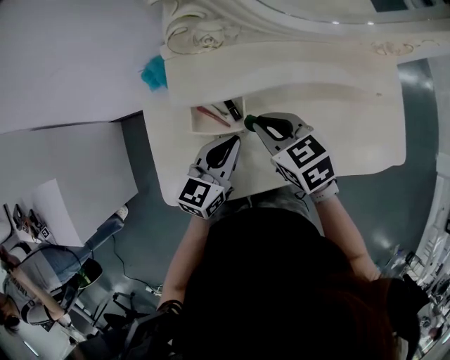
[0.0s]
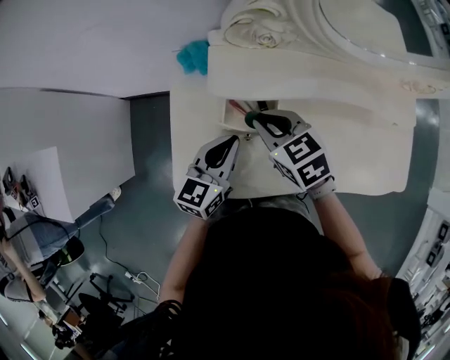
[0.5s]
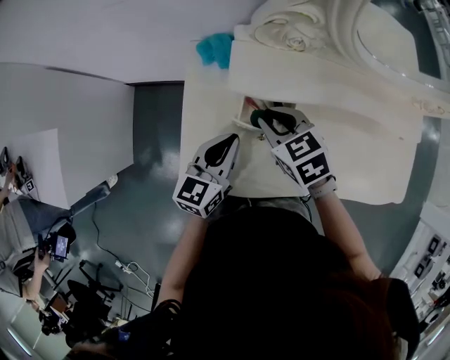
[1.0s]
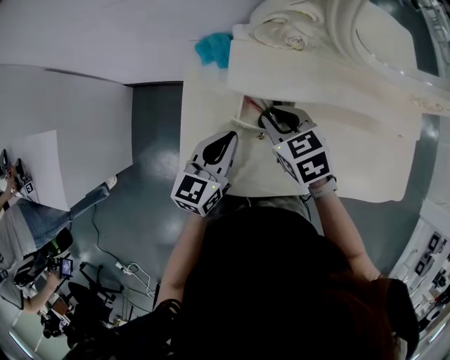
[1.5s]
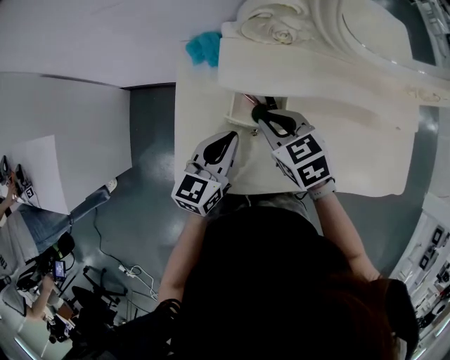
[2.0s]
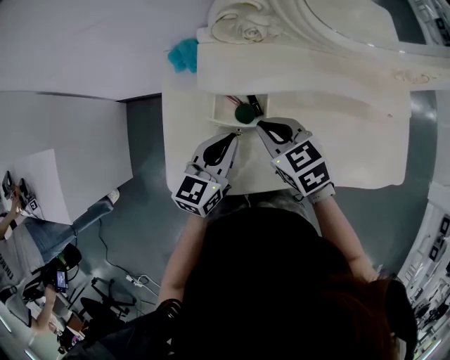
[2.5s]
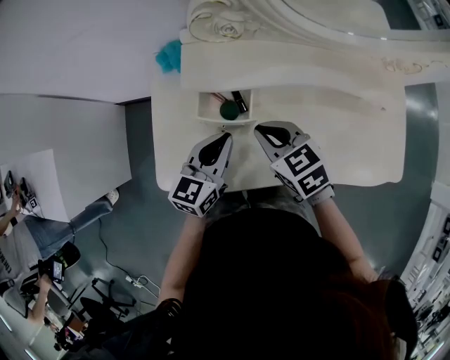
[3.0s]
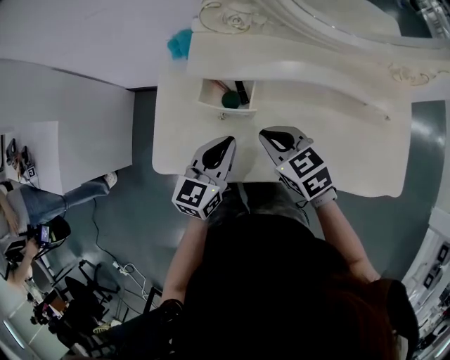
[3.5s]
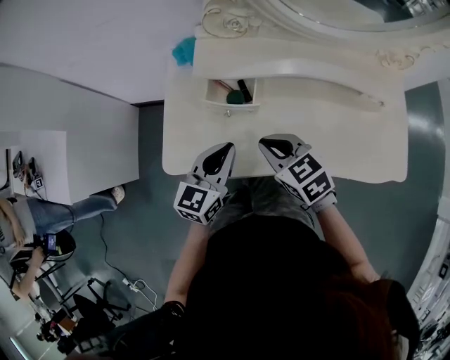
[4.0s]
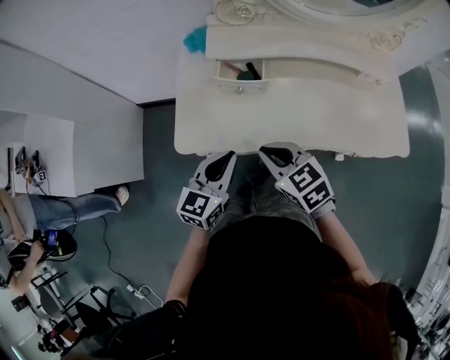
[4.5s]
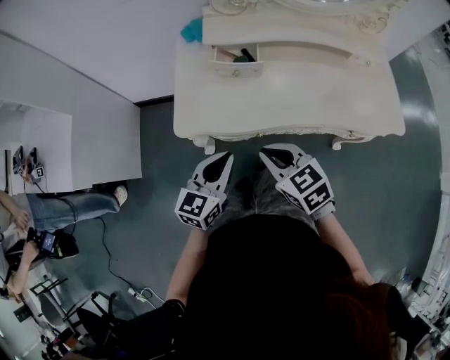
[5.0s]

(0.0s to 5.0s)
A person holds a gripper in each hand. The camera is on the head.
0.0s - 2.5s: The grippers both shift to the left by some 5 cm.
2.5s - 5.0s: Both grippers move backward, approximately 25 cm.

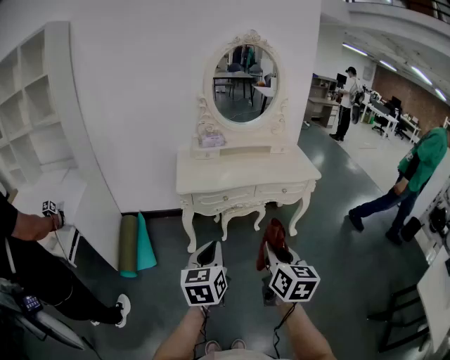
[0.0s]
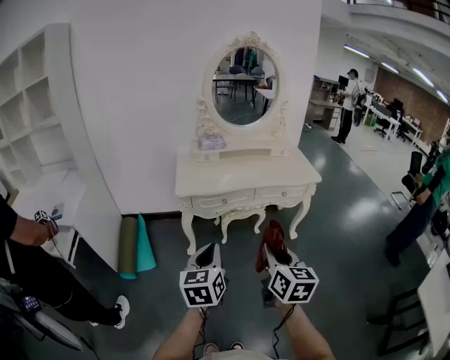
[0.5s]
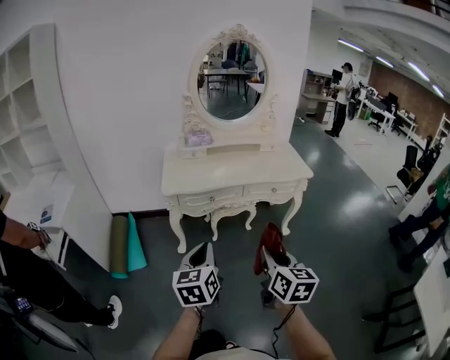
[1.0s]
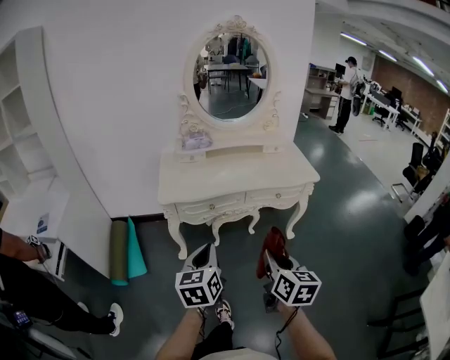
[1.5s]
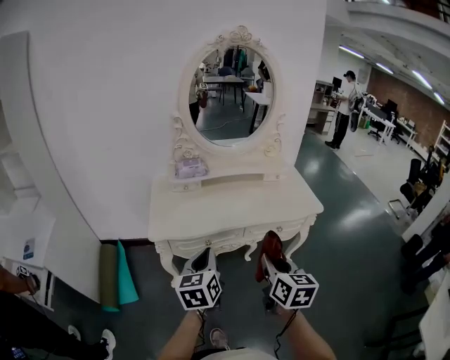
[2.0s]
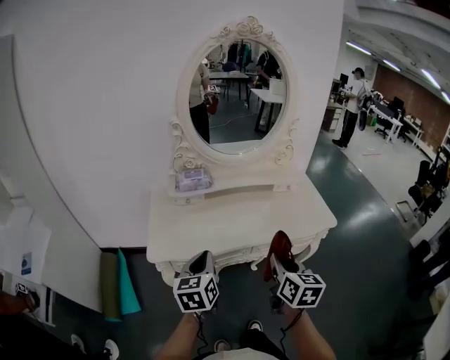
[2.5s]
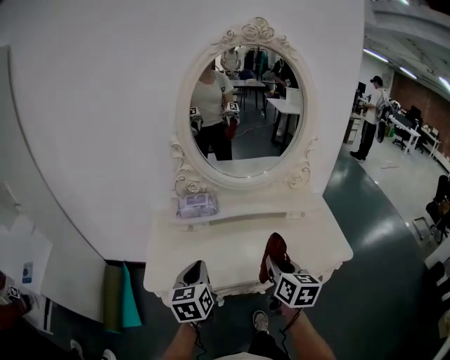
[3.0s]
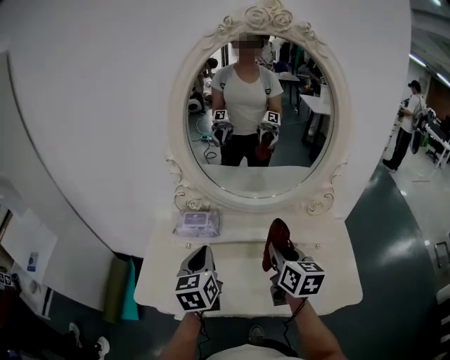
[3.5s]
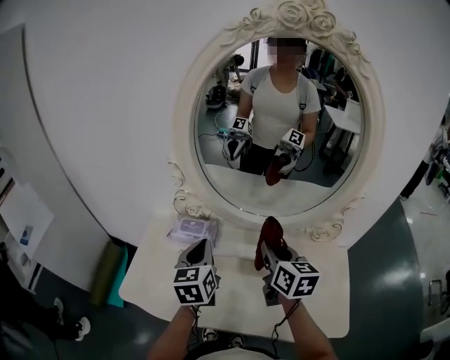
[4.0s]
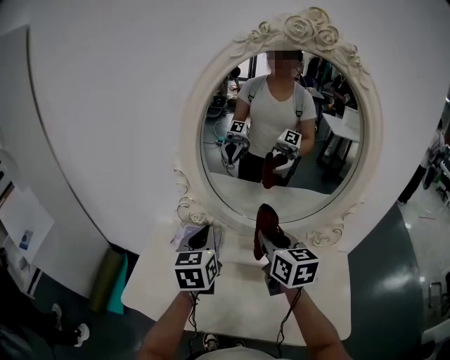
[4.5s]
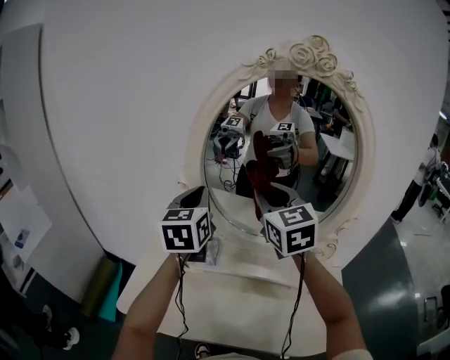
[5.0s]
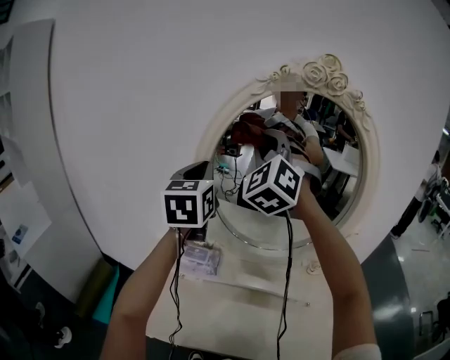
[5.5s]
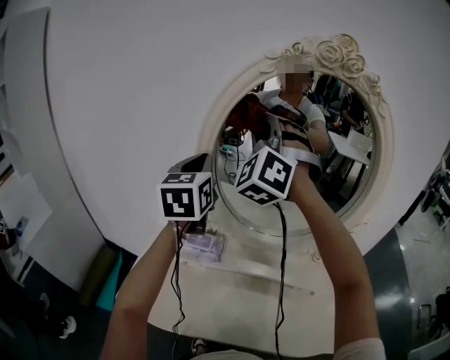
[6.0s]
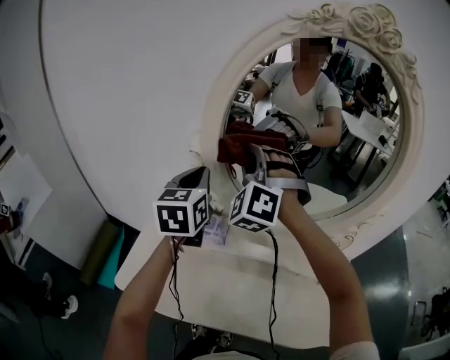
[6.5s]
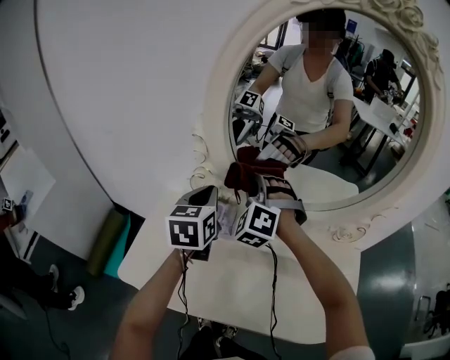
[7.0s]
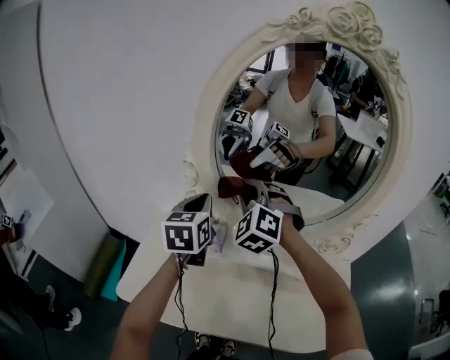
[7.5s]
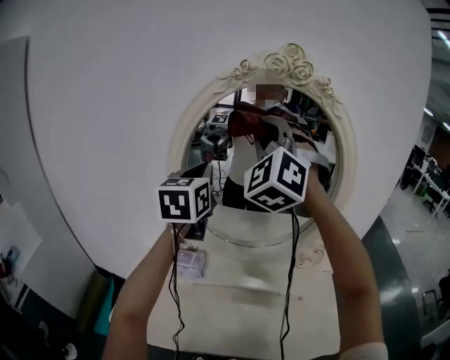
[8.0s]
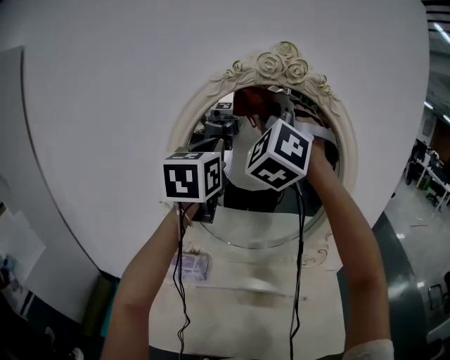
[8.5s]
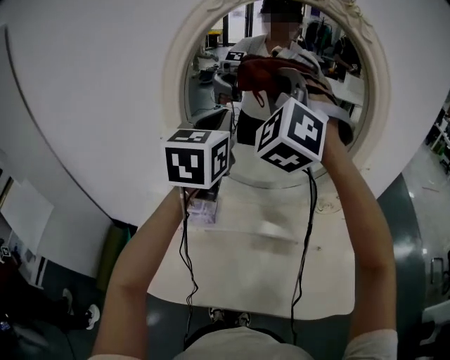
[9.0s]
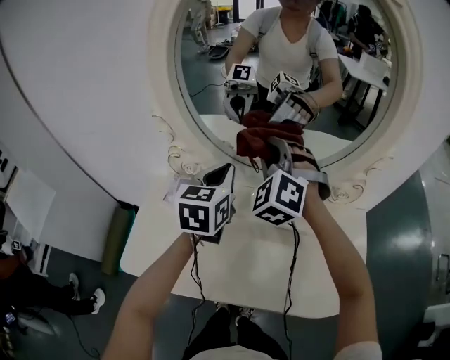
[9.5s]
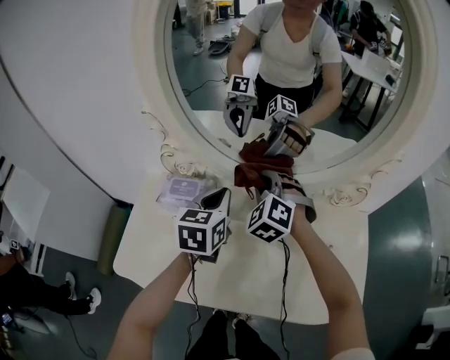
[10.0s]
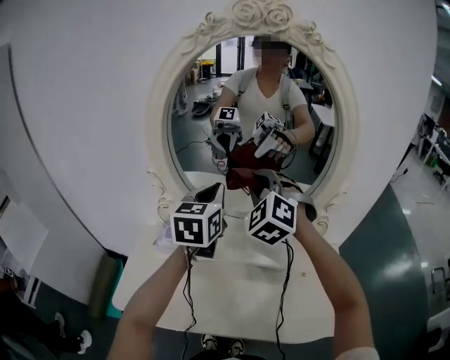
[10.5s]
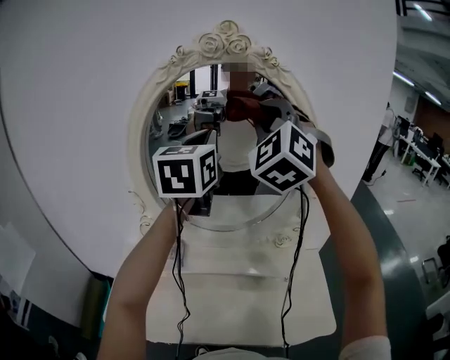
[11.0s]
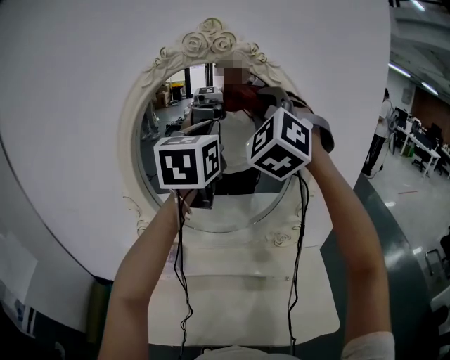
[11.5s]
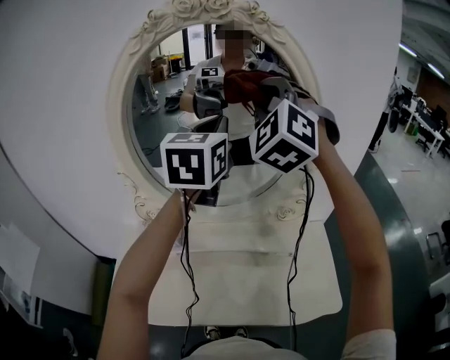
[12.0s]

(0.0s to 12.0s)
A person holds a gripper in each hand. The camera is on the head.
0.0s - 2.0s: The grippers both shift forward by approximately 25 cm.
2.0s - 4.0s: Both grippers are carried approximately 50 cm. The left gripper rotates some 20 degrees. The right gripper swivels roughly 30 degrees.
4.0s - 6.0s: The right gripper moves upward, forward and to the left, approximately 40 cm, and twists approximately 90 degrees counterclockwise, seen from behind. Meanwhile the left gripper travels upward and forward by roughly 25 cm.
6.0s - 8.0s: The grippers both shift to the right by approximately 10 cm. The right gripper reaches some 30 cm downward, then returns, while the left gripper moves some 20 cm downward and comes back.
8.0s - 10.0s: Both grippers travel together downward, about 40 cm. The right gripper tilts its fingers roughly 40 degrees downward. The left gripper swivels about 30 degrees.
10.0s - 12.0s: Both grippers travel together upward, approximately 40 cm. The left gripper changes its angle by some 30 degrees. The right gripper angles its fingers upward, by roughly 30 degrees.

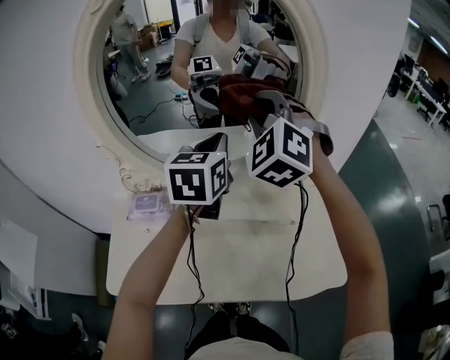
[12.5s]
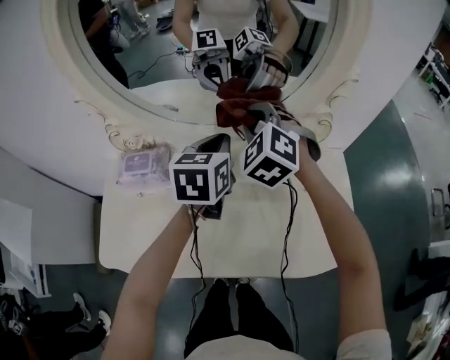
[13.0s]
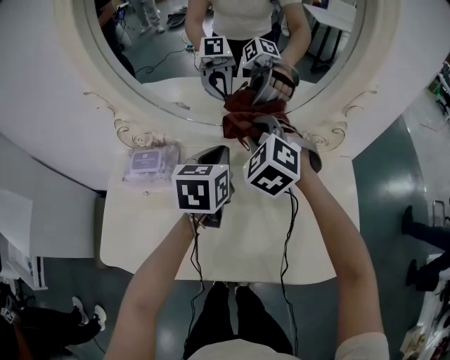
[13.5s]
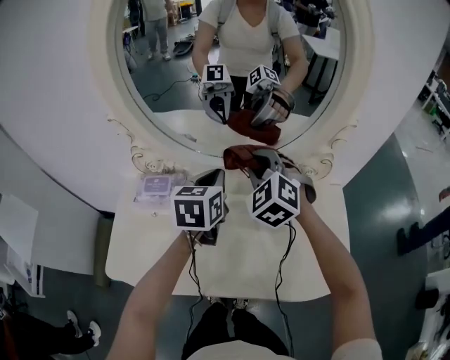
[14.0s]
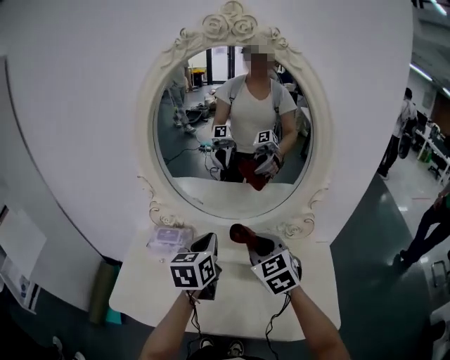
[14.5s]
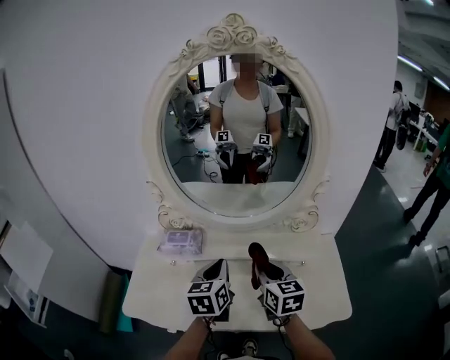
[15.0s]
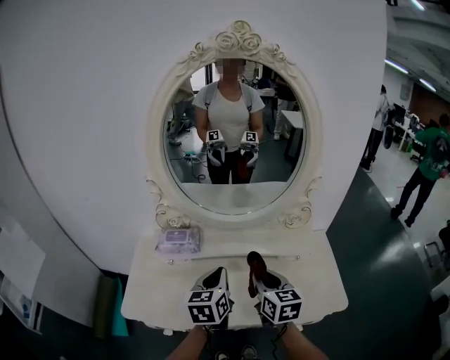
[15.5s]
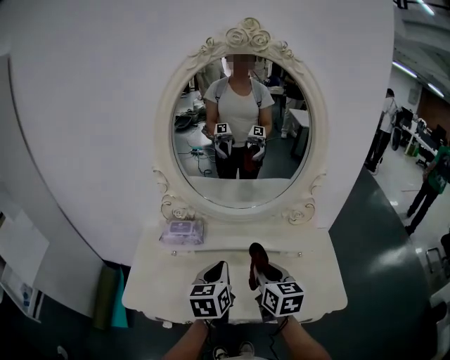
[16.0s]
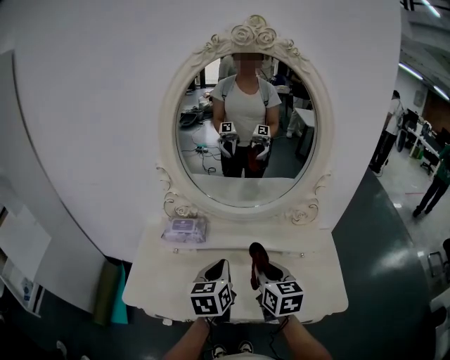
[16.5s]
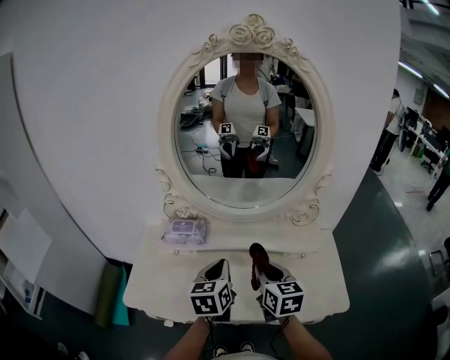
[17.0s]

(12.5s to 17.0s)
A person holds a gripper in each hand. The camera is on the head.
12.5s - 14.5s: The right gripper travels downward and backward by roughly 20 cm, and swivels approximately 40 degrees. Meanwhile the left gripper goes about 15 cm backward, downward and to the left.
14.5s - 17.0s: The right gripper travels backward by some 10 cm, and rotates about 30 degrees. The left gripper moves backward and downward, about 10 cm.

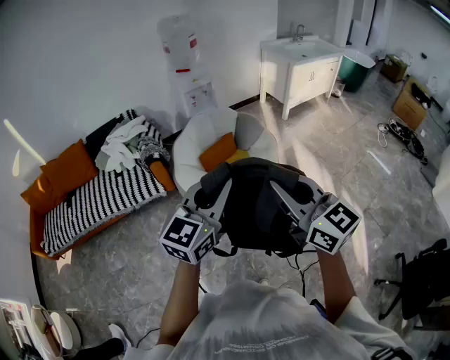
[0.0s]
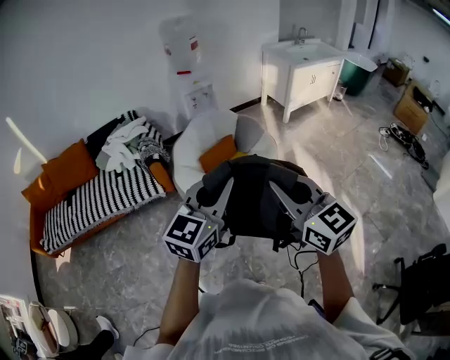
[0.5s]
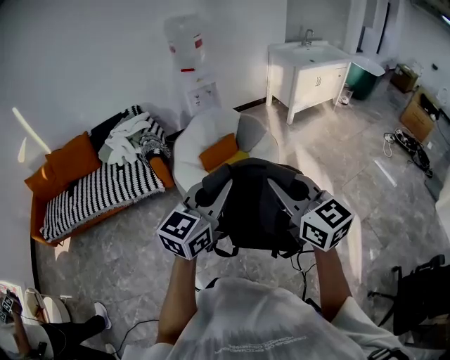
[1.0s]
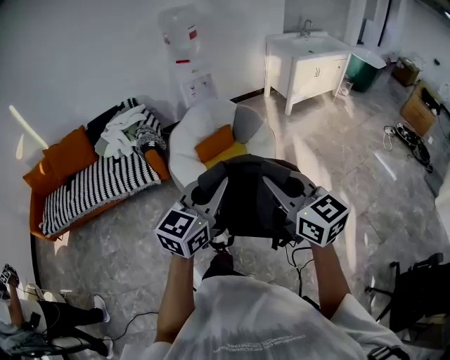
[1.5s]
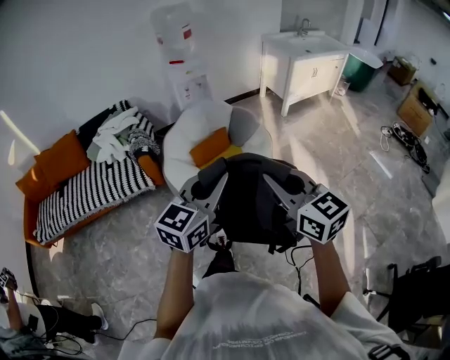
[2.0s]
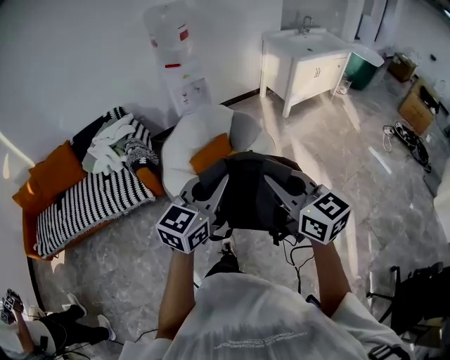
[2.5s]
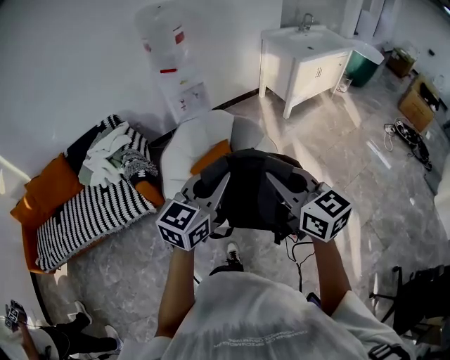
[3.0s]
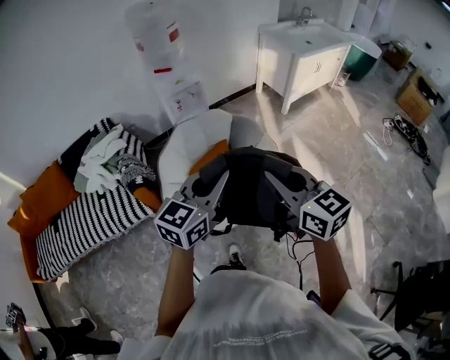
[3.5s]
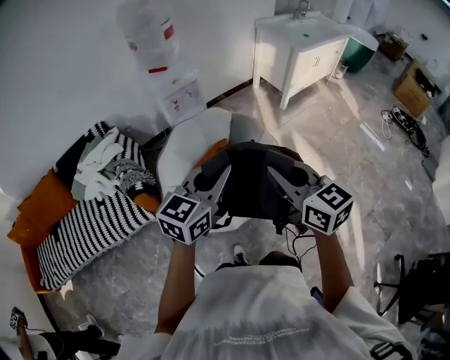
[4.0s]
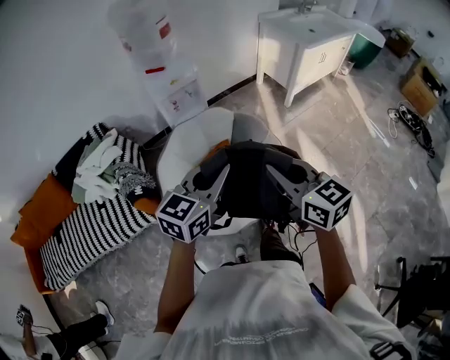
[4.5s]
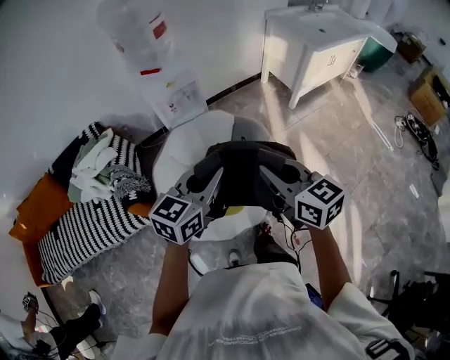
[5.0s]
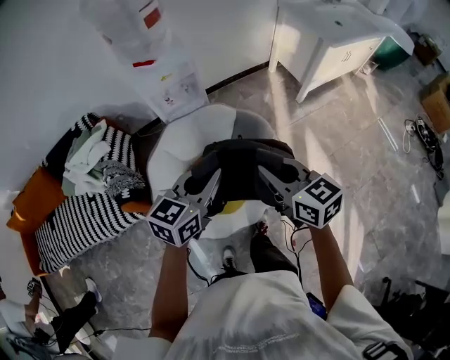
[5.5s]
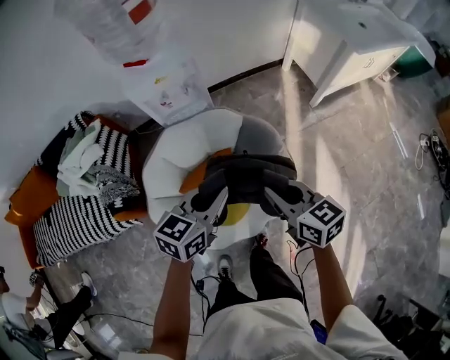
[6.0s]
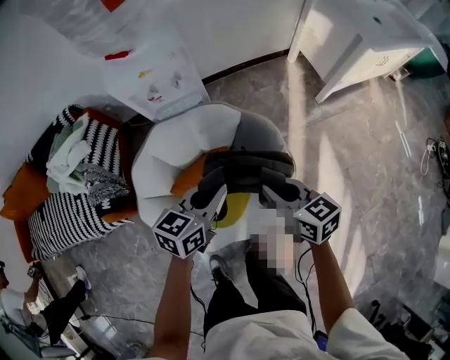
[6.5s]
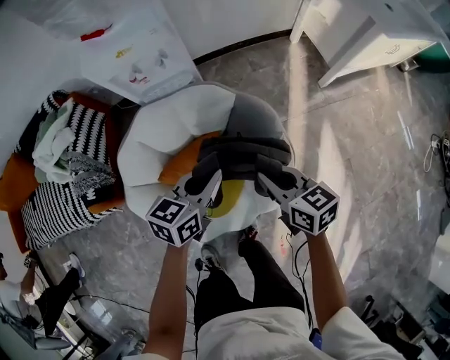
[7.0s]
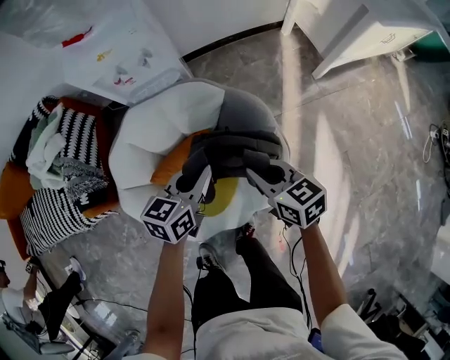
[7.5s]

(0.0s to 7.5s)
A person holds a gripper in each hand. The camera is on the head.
0.0s - 2.0s: Both grippers move to the right, forward and downward, roughly 10 cm.
2.0s - 4.0s: The grippers both shift forward by about 30 cm.
4.0s - 5.5s: The grippers both shift forward and downward by approximately 25 cm.
5.5s - 7.5s: The two grippers go roughly 35 cm downward and forward.
